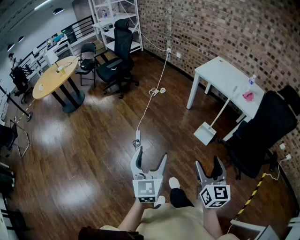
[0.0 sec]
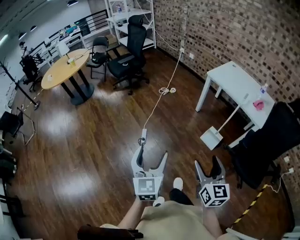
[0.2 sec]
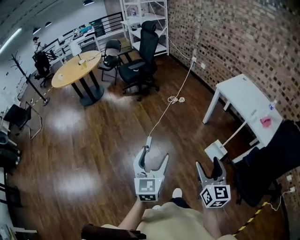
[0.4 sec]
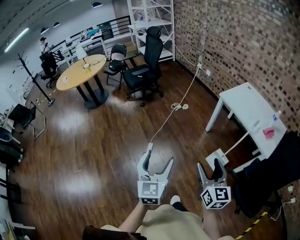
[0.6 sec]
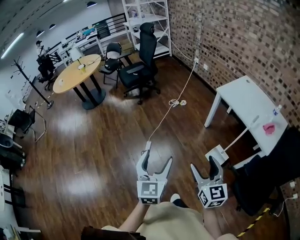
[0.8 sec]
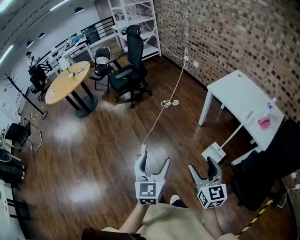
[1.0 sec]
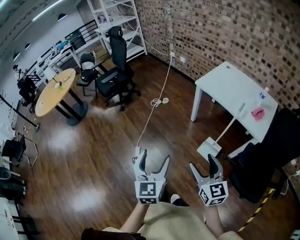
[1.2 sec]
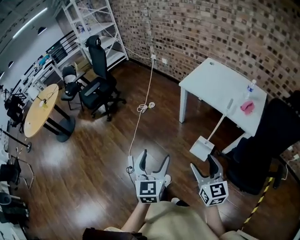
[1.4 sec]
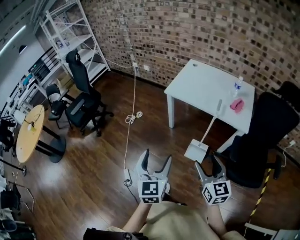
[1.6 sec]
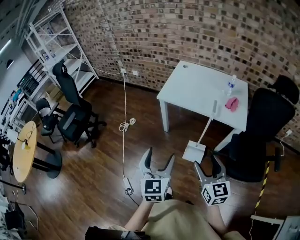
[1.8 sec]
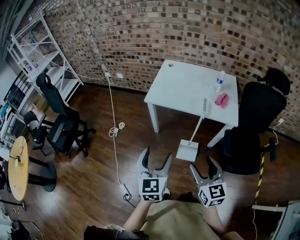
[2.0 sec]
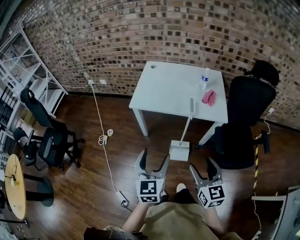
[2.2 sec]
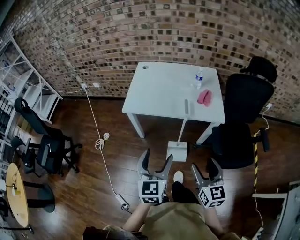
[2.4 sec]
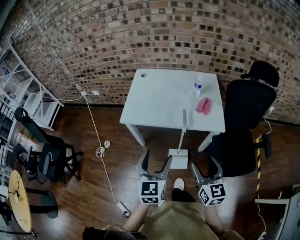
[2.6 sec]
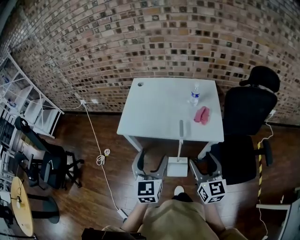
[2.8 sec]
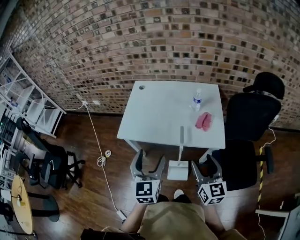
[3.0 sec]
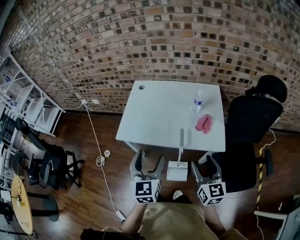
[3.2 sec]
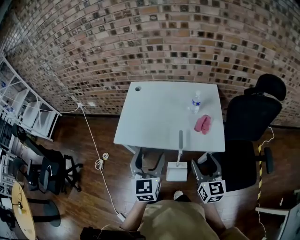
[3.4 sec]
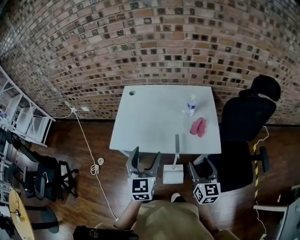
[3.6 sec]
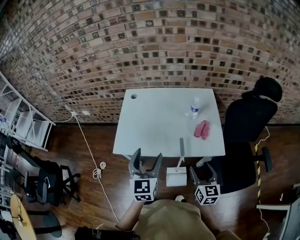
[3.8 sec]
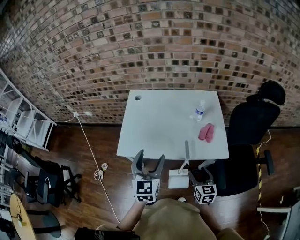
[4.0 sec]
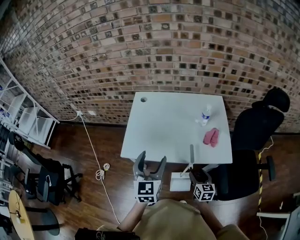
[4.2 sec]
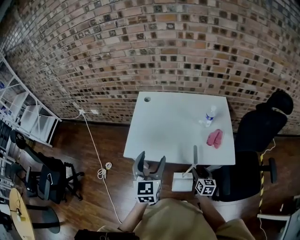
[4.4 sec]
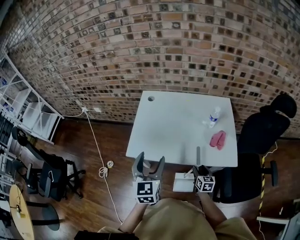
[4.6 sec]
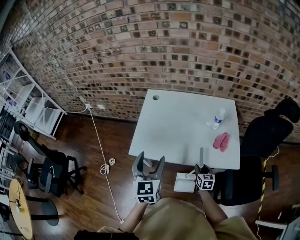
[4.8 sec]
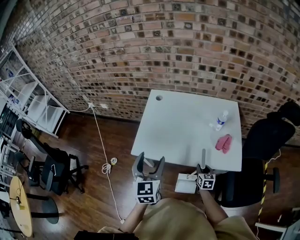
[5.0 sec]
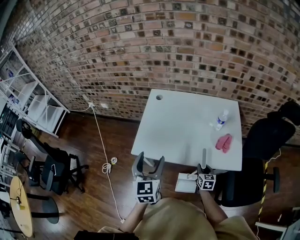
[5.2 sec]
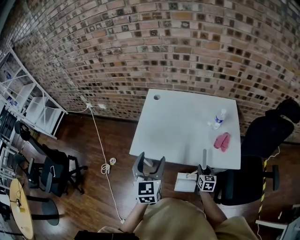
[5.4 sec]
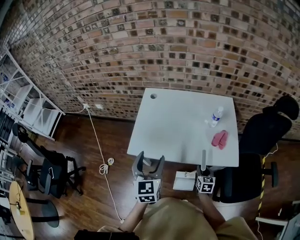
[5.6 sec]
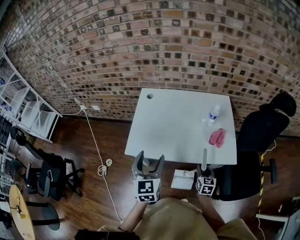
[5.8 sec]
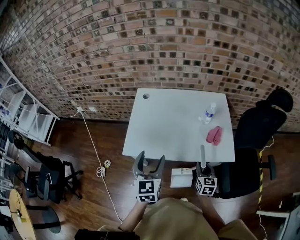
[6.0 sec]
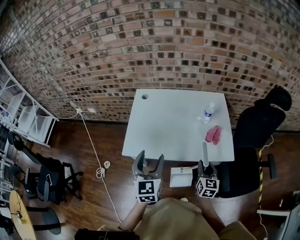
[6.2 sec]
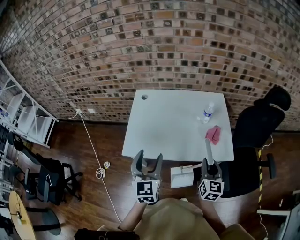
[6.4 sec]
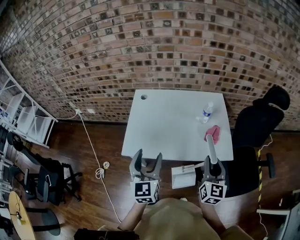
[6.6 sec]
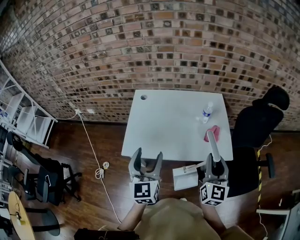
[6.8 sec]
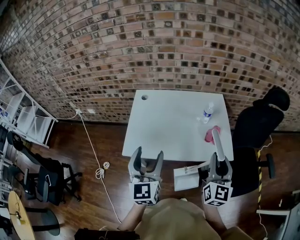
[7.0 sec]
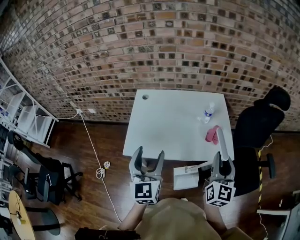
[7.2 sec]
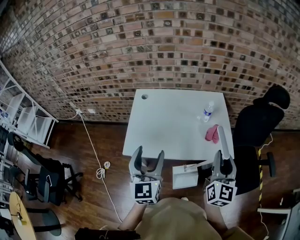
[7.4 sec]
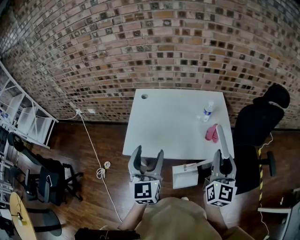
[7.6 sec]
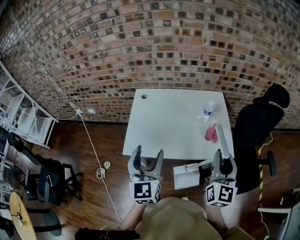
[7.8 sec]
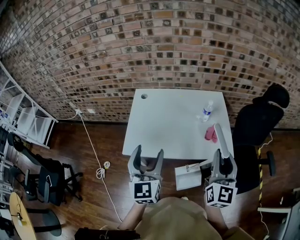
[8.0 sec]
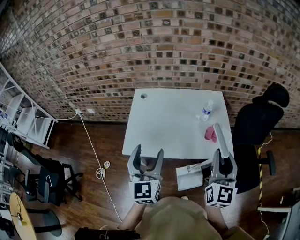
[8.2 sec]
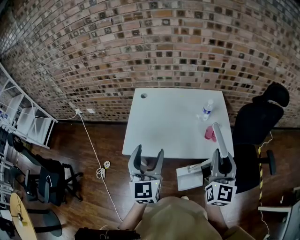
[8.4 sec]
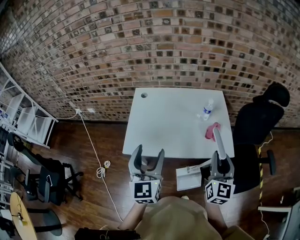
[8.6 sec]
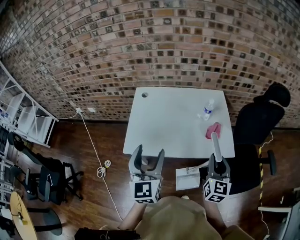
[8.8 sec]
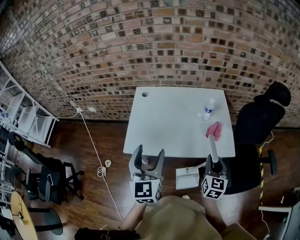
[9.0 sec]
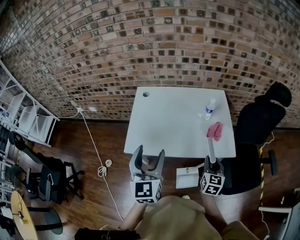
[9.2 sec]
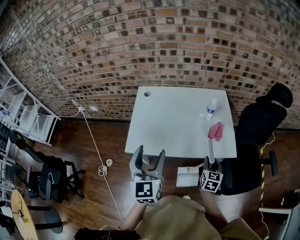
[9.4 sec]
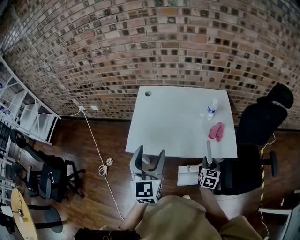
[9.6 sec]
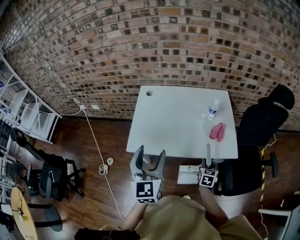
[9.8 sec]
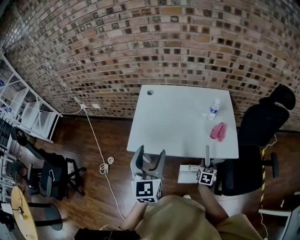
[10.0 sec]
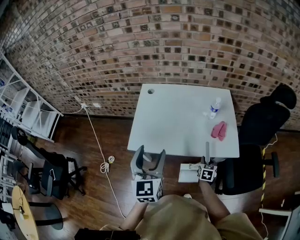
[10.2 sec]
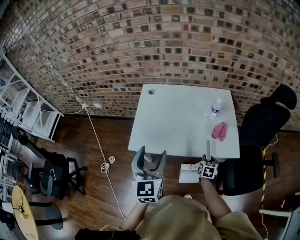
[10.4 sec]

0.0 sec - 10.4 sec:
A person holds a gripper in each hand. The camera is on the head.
0.0 sec - 1.4 sec: Both grippers move forward and to the right, some 30 cm.
1.4 sec - 3.0 sec: The left gripper shifts by some 50 cm, and rotates approximately 30 degrees, while the right gripper changes place by approximately 35 cm, and turns by some 40 degrees.
3.0 sec - 4.4 sec: The right gripper heads downward and forward, covering approximately 30 cm, and rotates roughly 20 degrees. Meanwhile the left gripper travels forward and to the left by about 15 cm.
4.4 sec - 6.0 sec: The right gripper travels upward by some 5 cm, and closes its fingers.
6.0 sec - 7.4 sec: The left gripper moves upward, roughly 5 cm; the right gripper is displaced upward by some 25 cm, and turns by roughly 30 degrees.
7.4 sec - 9.0 sec: The right gripper goes about 15 cm downward.
9.0 sec - 10.4 sec: The right gripper travels downward by about 20 cm, and changes its angle by approximately 30 degrees.

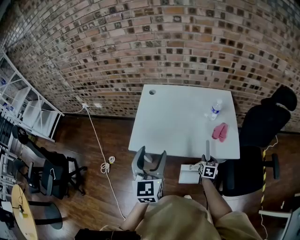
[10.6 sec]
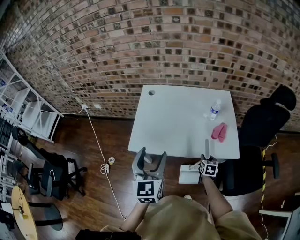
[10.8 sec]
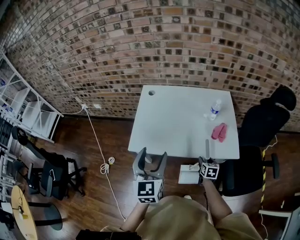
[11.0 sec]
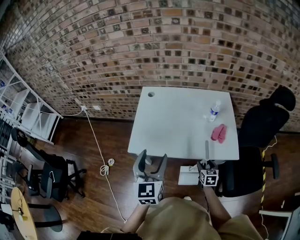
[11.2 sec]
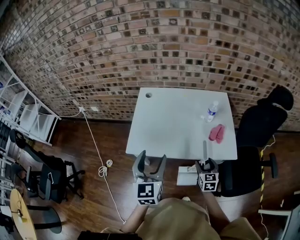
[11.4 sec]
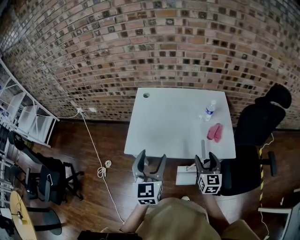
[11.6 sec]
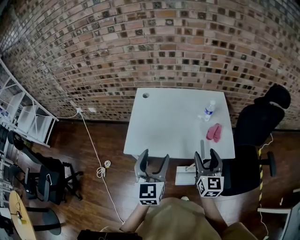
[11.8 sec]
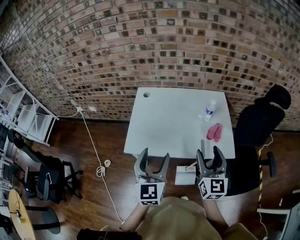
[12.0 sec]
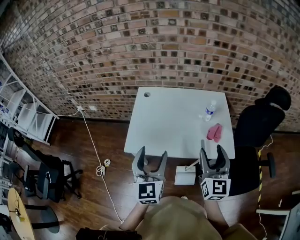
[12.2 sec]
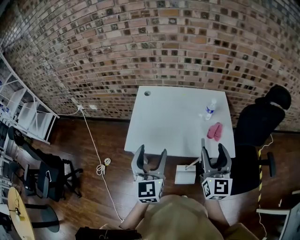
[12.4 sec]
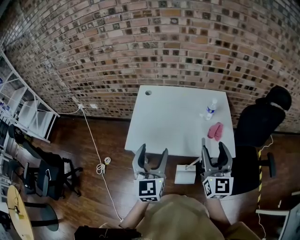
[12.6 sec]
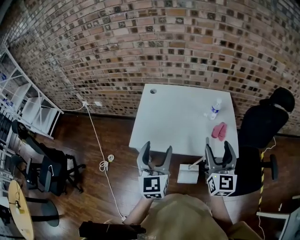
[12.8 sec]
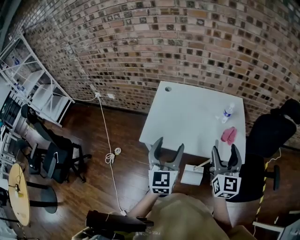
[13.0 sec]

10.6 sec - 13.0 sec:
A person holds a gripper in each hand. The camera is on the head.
10.6 sec - 11.8 sec: The right gripper is displaced upward by roughly 25 cm, tips its fingers upward by approximately 40 degrees, and opens up.
11.8 sec - 13.0 sec: The right gripper shifts about 5 cm upward.

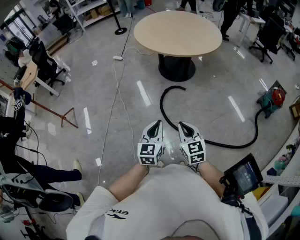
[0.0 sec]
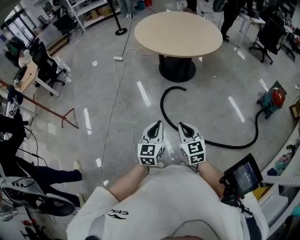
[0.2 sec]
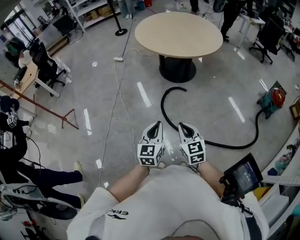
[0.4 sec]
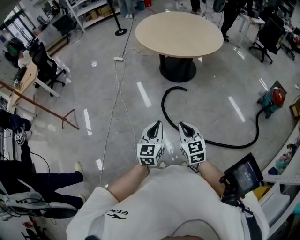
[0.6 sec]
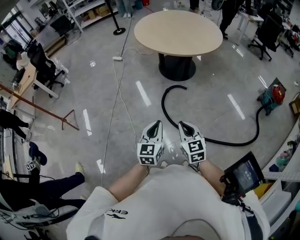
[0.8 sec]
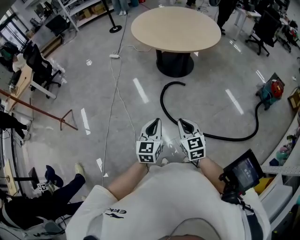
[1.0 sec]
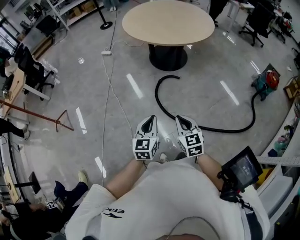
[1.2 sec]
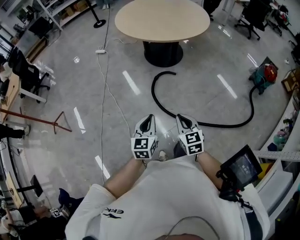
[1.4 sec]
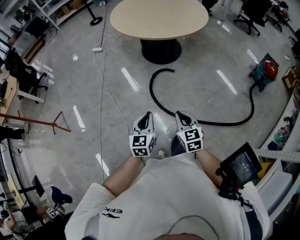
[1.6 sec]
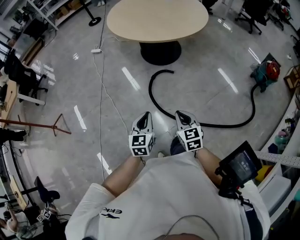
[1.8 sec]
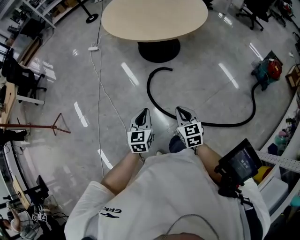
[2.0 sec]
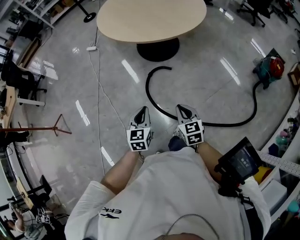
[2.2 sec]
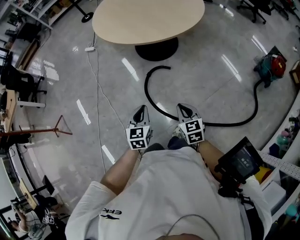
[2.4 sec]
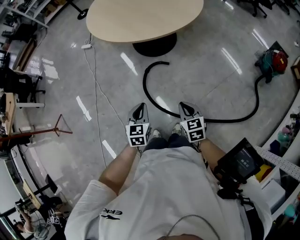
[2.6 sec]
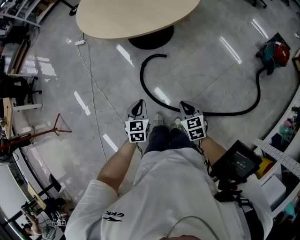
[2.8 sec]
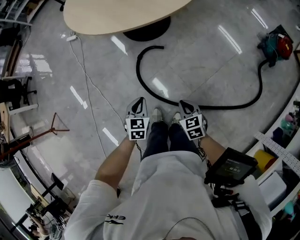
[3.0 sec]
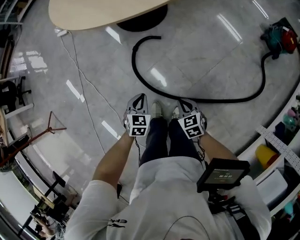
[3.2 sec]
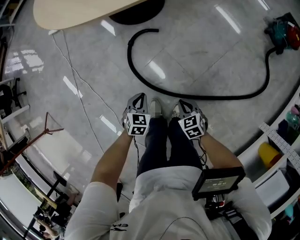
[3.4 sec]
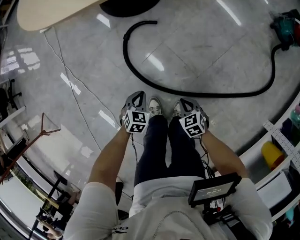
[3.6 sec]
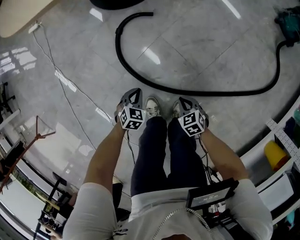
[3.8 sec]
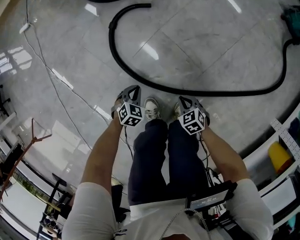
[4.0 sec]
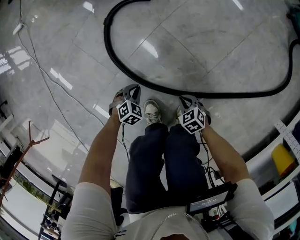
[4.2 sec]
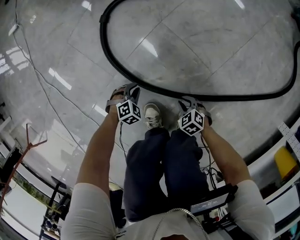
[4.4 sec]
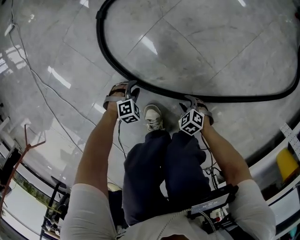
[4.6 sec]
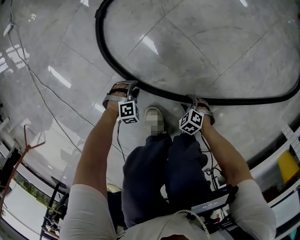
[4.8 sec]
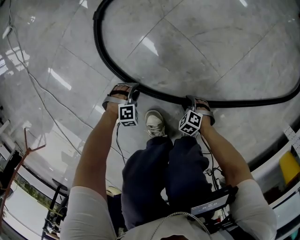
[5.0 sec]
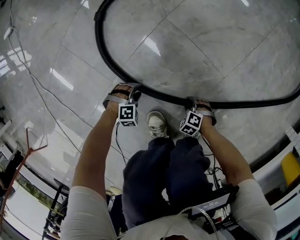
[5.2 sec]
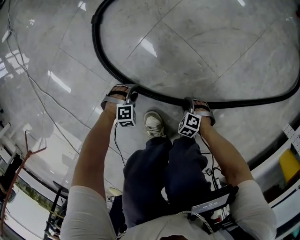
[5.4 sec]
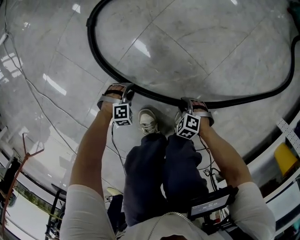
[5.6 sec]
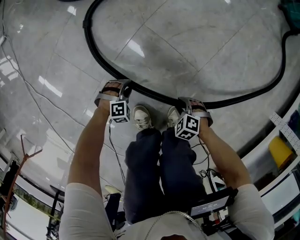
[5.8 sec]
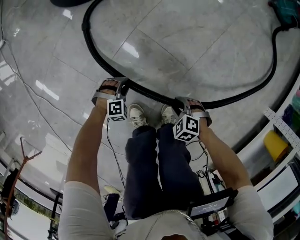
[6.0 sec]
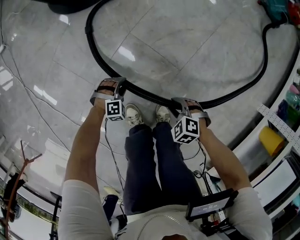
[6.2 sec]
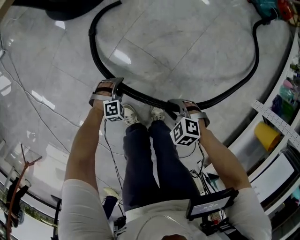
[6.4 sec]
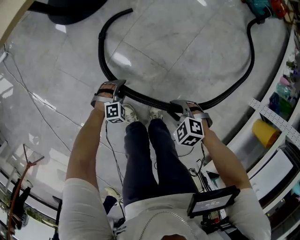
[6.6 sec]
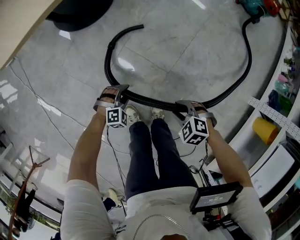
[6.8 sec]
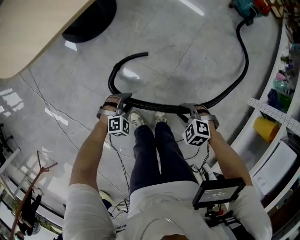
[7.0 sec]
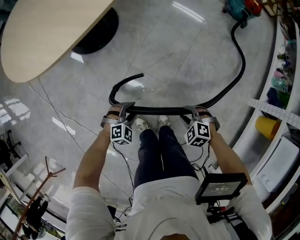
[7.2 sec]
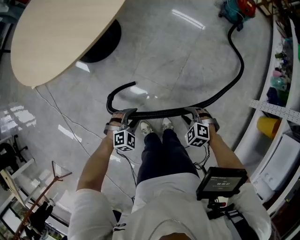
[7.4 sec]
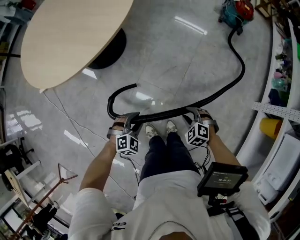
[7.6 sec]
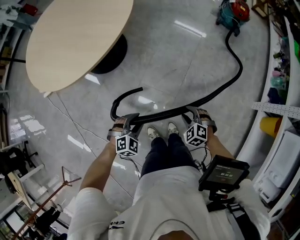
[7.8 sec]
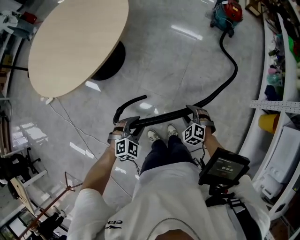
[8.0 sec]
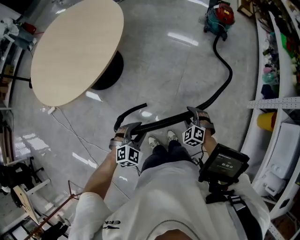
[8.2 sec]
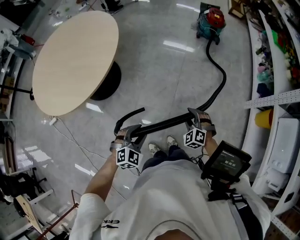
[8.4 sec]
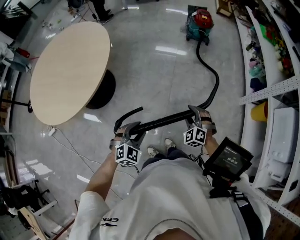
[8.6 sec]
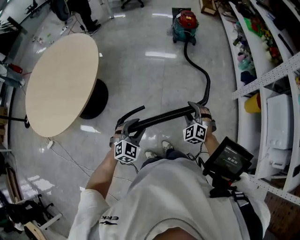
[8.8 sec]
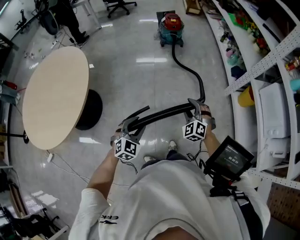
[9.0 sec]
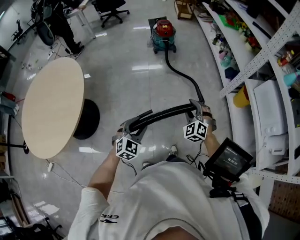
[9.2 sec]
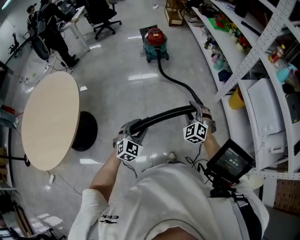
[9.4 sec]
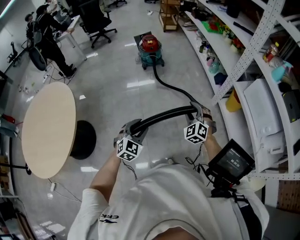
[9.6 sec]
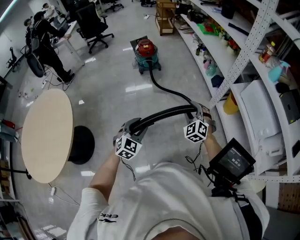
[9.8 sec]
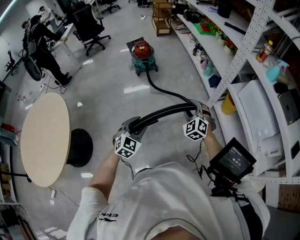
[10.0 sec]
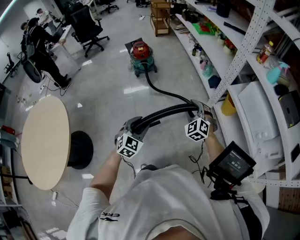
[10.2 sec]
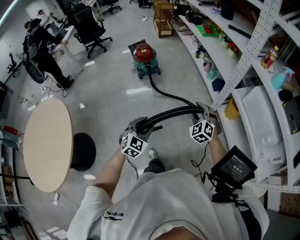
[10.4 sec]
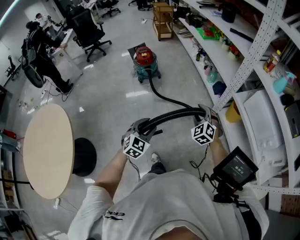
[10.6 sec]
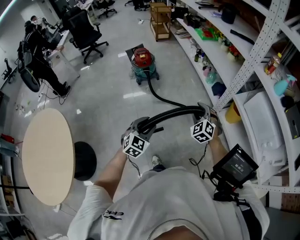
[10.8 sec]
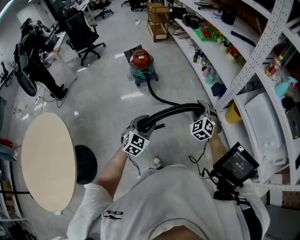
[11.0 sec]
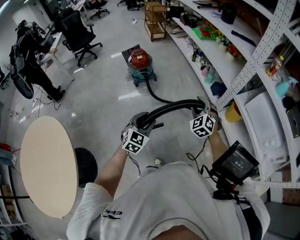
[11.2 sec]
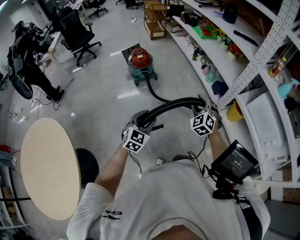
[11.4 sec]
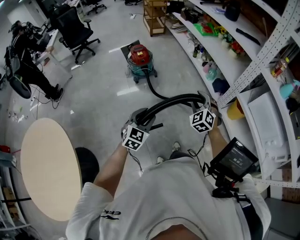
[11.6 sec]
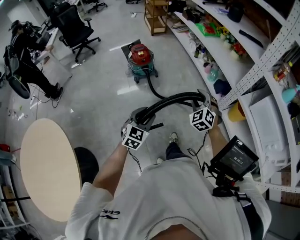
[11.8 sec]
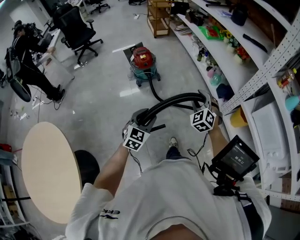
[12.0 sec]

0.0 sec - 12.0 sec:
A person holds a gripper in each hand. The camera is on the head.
0.0 sec - 1.6 sec: The right gripper travels downward by roughly 5 cm; the left gripper shifts roughly 10 cm downward and forward.
1.6 sec - 3.0 sec: The right gripper shifts about 30 cm downward, forward and to the right. The left gripper is displaced forward, downward and to the right by about 30 cm, and swivels roughly 30 degrees.
3.0 sec - 4.4 sec: The grippers both shift downward by roughly 60 cm. The right gripper changes its angle by approximately 30 degrees, while the left gripper swivels some 60 degrees.
4.4 sec - 6.0 sec: The left gripper shifts by about 10 cm, changes its angle by approximately 30 degrees, and opens; the right gripper is displaced upward by approximately 10 cm, and opens its fingers.
6.0 sec - 7.6 sec: The two grippers go approximately 50 cm upward. The right gripper changes its angle by roughly 20 degrees.
7.6 sec - 9.0 sec: The grippers both shift upward by some 25 cm. The right gripper points its fingers roughly 30 degrees further upward. Meanwhile the left gripper changes its angle by approximately 20 degrees.
9.0 sec - 10.4 sec: The right gripper is displaced to the right and forward by some 30 cm, and rotates some 20 degrees. Meanwhile the left gripper heads forward and to the right, covering roughly 30 cm.
10.4 sec - 12.0 sec: Both grippers travel together forward and to the left, about 25 cm.
